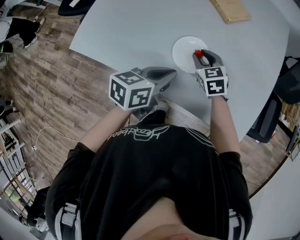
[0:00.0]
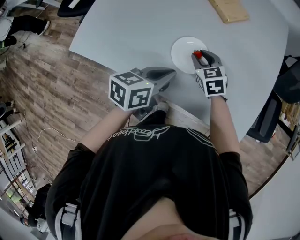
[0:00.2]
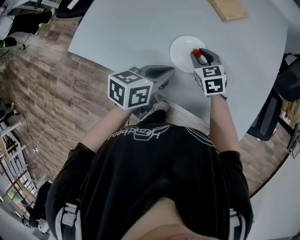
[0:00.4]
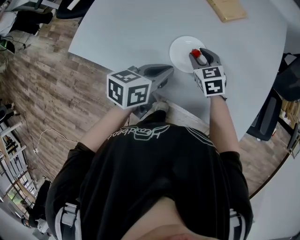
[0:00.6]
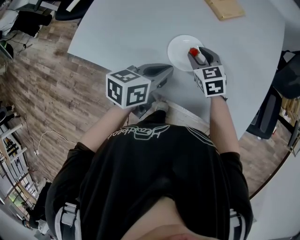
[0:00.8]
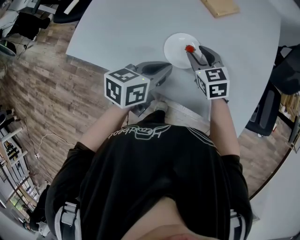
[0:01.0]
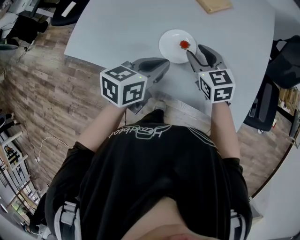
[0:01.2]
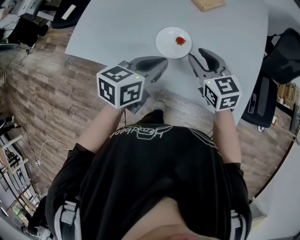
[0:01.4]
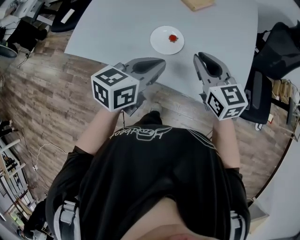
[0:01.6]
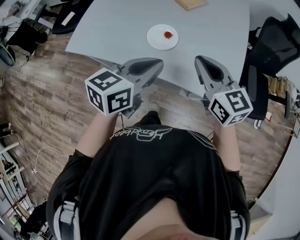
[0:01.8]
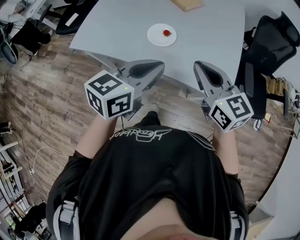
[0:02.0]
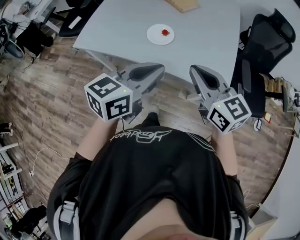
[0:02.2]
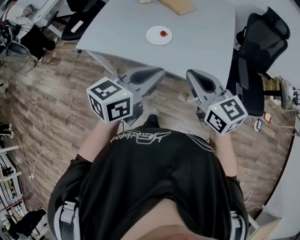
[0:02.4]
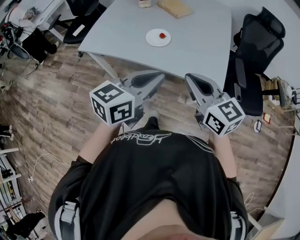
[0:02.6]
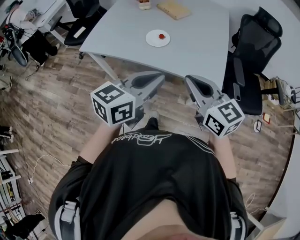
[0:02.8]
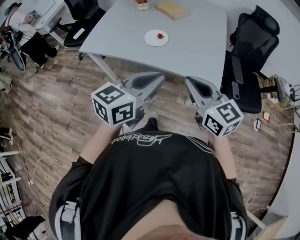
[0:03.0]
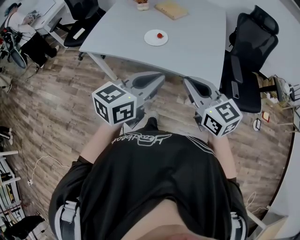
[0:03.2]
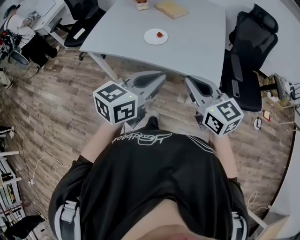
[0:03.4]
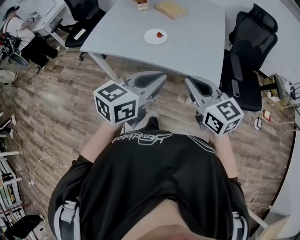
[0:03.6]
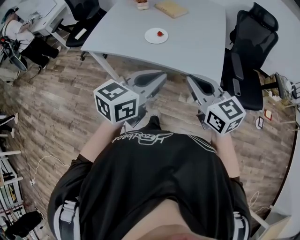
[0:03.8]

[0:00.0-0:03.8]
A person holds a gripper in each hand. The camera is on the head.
0:00.0 to 0:01.2: The right gripper heads upward, covering approximately 10 cm.
0:01.2 to 0:02.6: The two grippers go about 35 cm backward and upward. The left gripper changes its angle by some 20 degrees. Meanwhile the right gripper turns by about 20 degrees, and closes its fingers.
0:02.6 to 0:03.8: The grippers both shift backward by some 5 cm.

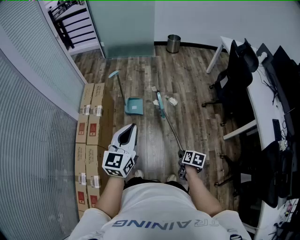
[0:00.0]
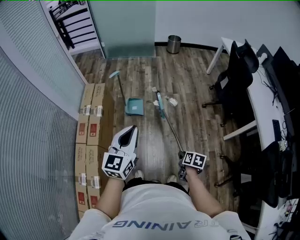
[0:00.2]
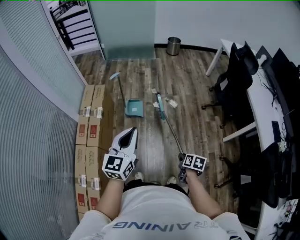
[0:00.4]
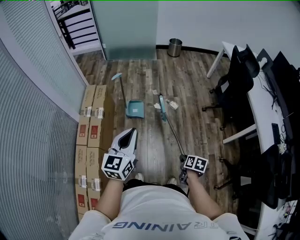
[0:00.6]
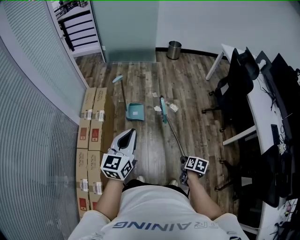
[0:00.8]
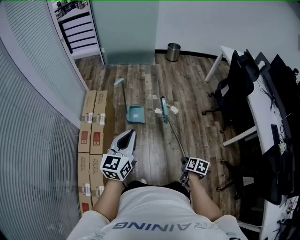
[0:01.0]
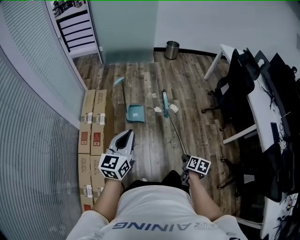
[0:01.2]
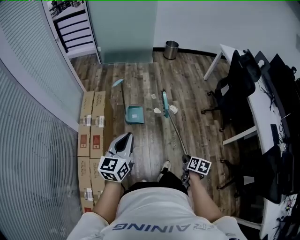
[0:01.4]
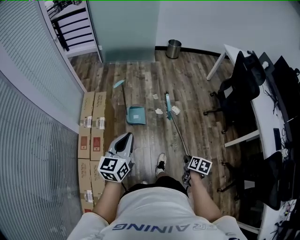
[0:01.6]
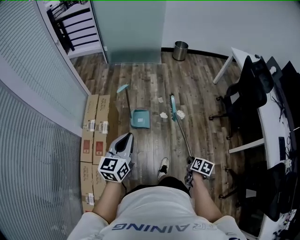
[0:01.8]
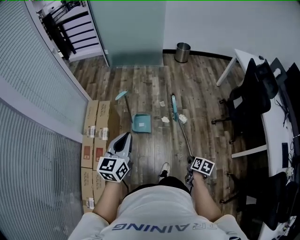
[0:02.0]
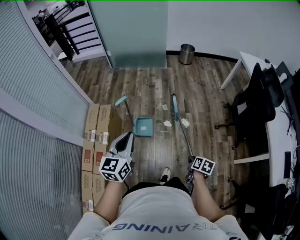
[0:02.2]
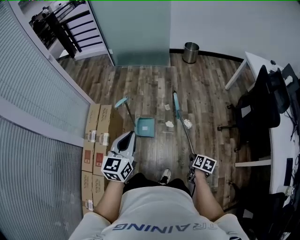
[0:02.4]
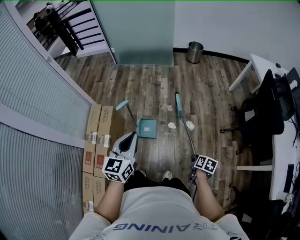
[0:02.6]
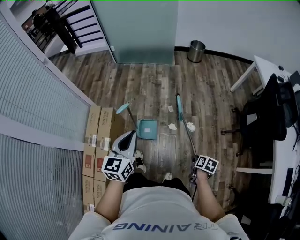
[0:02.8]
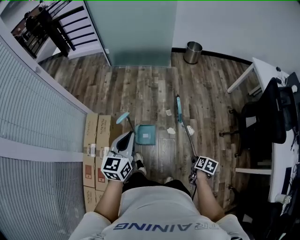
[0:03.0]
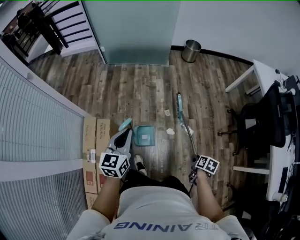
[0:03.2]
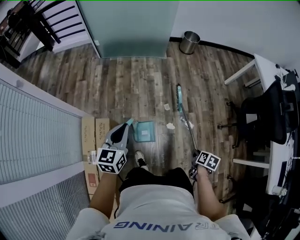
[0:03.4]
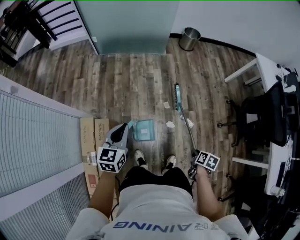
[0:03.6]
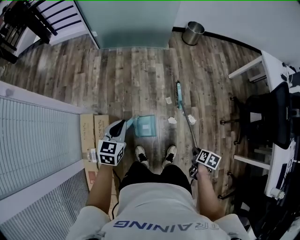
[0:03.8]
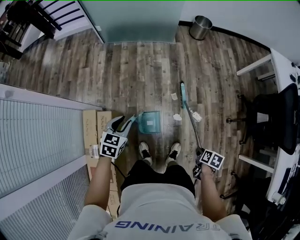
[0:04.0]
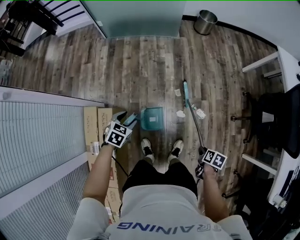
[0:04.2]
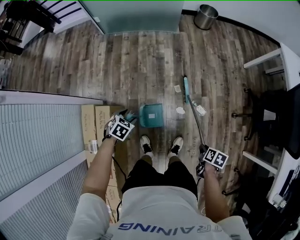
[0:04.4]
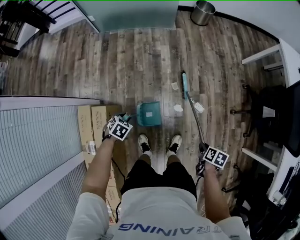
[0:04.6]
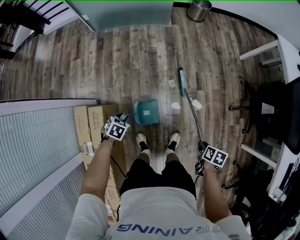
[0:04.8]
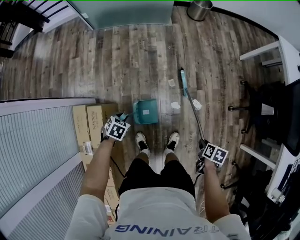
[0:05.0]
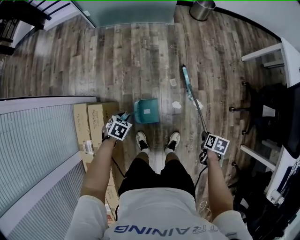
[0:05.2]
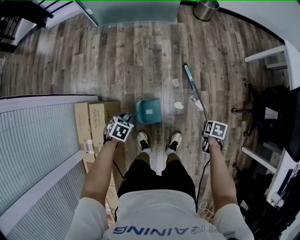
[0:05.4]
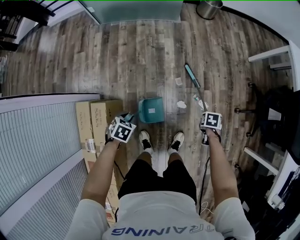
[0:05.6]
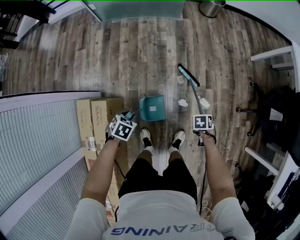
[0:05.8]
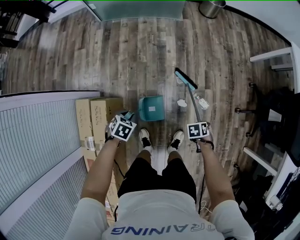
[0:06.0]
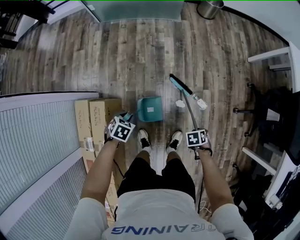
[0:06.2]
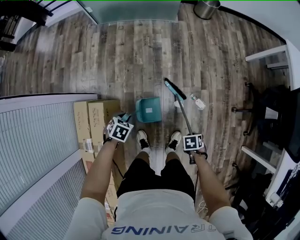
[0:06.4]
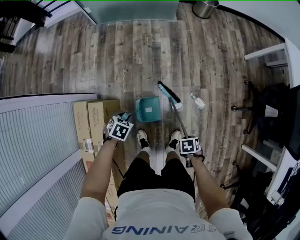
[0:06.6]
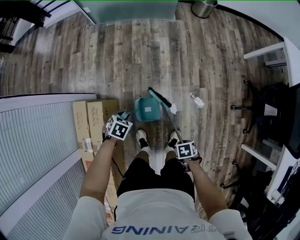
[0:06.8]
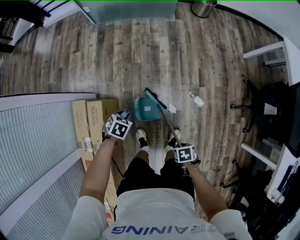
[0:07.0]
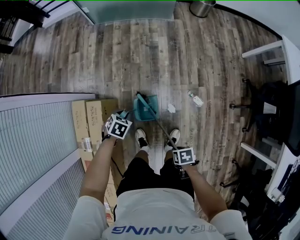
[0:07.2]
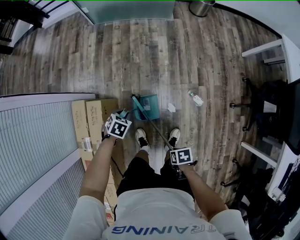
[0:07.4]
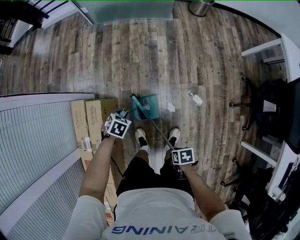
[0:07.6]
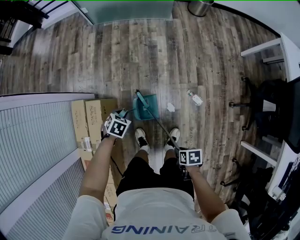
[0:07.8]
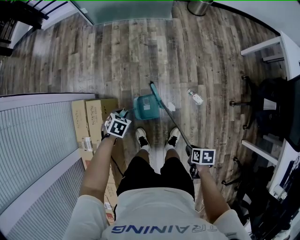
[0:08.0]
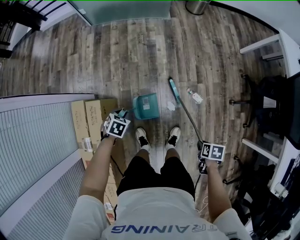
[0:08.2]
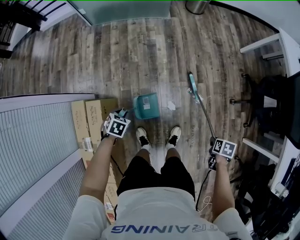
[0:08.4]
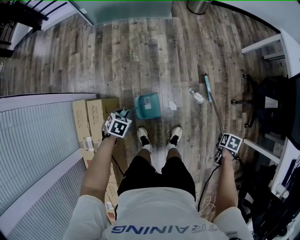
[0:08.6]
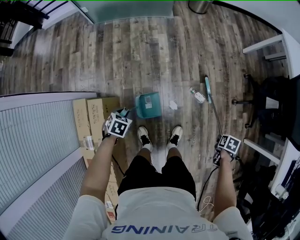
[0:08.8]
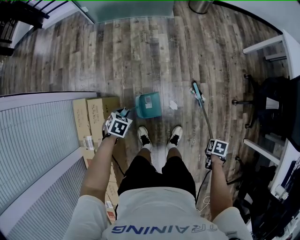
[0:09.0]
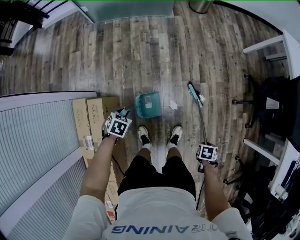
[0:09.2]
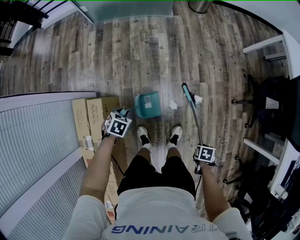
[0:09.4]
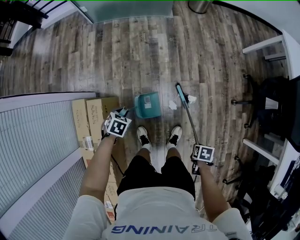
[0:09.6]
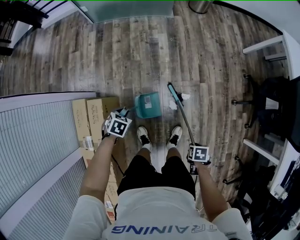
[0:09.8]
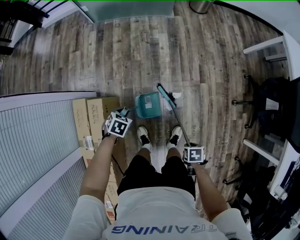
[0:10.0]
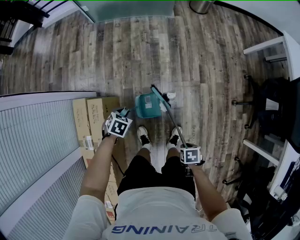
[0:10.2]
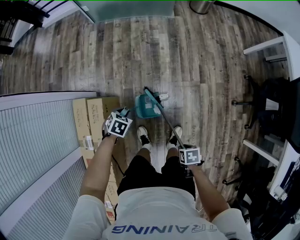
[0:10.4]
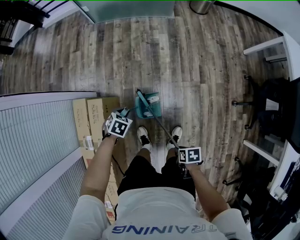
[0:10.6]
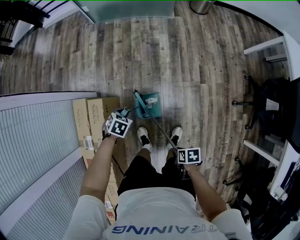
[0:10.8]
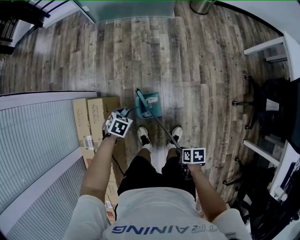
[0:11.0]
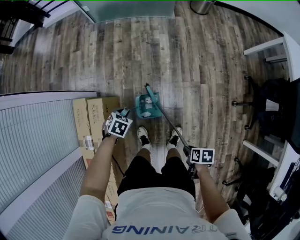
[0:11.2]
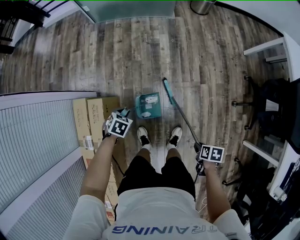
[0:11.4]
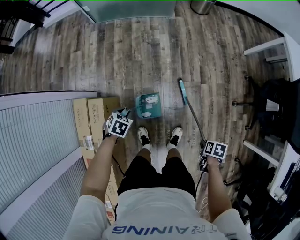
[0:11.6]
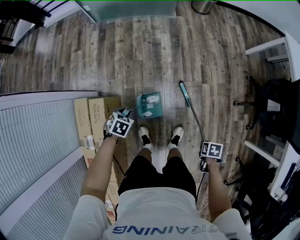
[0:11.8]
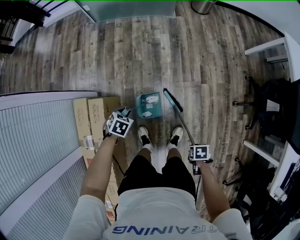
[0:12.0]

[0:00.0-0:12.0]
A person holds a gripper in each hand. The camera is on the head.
0:00.0 to 0:01.6: The left gripper moves some 15 cm.
0:01.6 to 0:03.0: The left gripper ends up roughly 35 cm from where it was.
0:03.0 to 0:04.4: The left gripper is displaced downward by roughly 30 cm, points its fingers approximately 50 degrees further downward, and opens its fingers.
0:04.4 to 0:06.0: The left gripper shifts roughly 5 cm downward, and closes up.

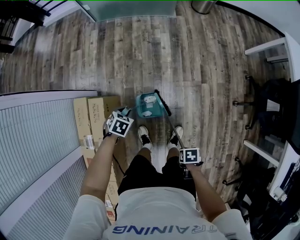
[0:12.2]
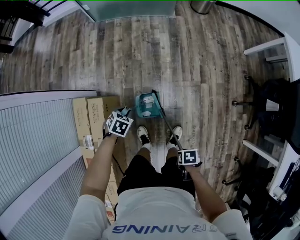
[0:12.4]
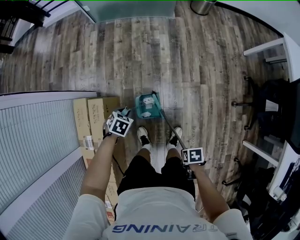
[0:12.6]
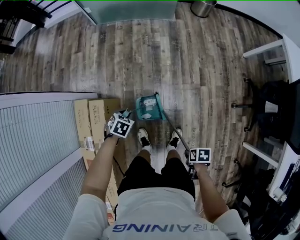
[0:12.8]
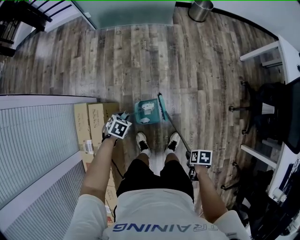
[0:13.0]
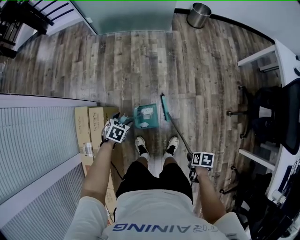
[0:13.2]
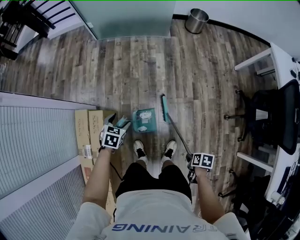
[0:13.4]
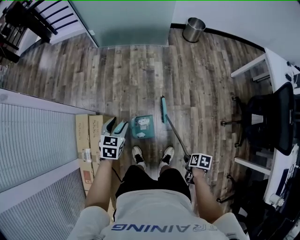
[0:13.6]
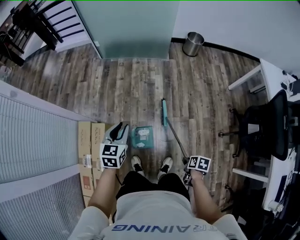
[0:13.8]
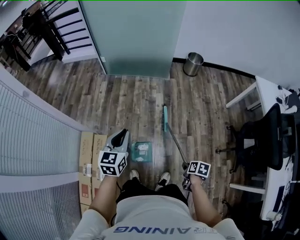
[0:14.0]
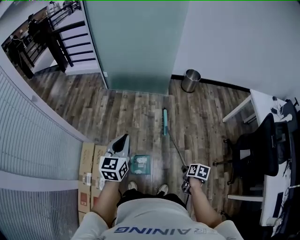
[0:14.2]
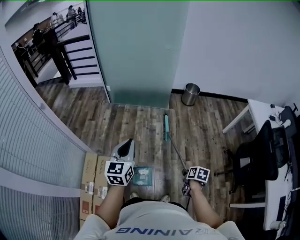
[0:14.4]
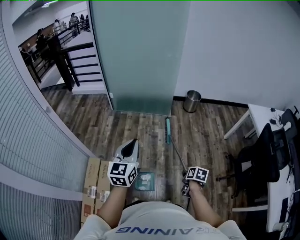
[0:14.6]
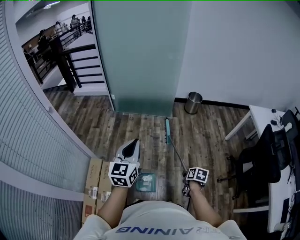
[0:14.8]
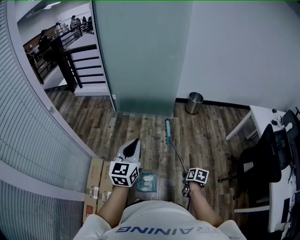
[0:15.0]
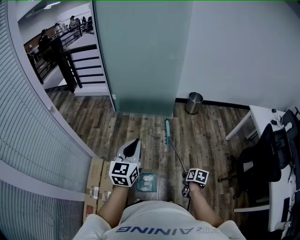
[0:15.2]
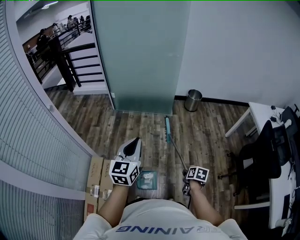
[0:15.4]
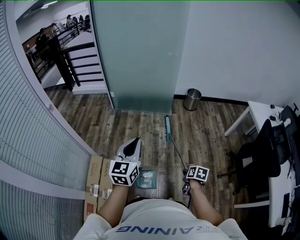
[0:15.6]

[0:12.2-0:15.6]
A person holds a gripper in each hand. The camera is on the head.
0:12.2 to 0:13.8: The left gripper is displaced upward by about 25 cm, tilts its fingers some 40 degrees upward, and opens, then closes again.
0:13.8 to 0:15.6: The left gripper travels upward by roughly 25 cm, and swivels some 30 degrees.

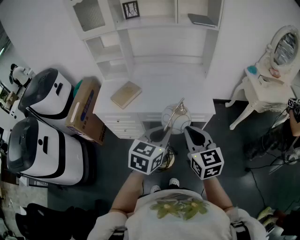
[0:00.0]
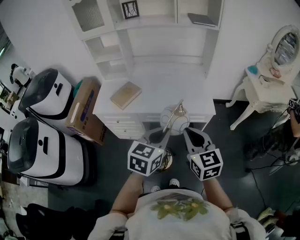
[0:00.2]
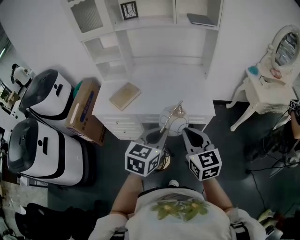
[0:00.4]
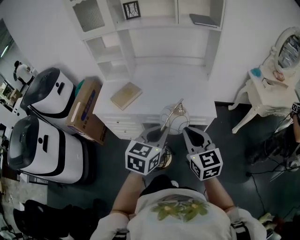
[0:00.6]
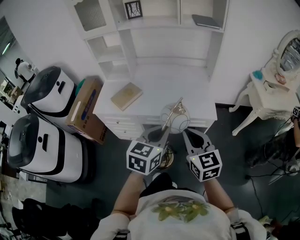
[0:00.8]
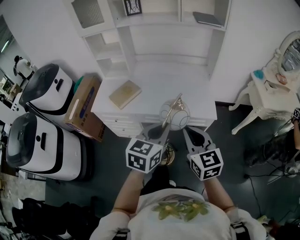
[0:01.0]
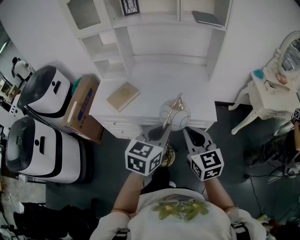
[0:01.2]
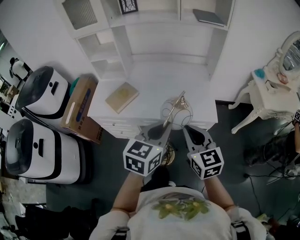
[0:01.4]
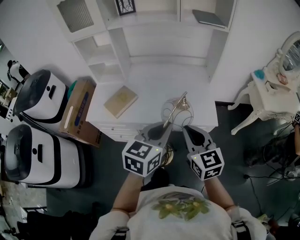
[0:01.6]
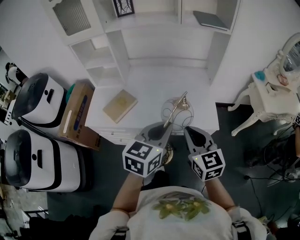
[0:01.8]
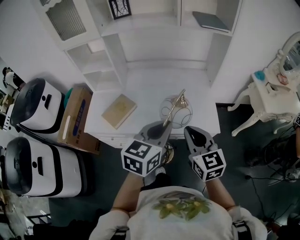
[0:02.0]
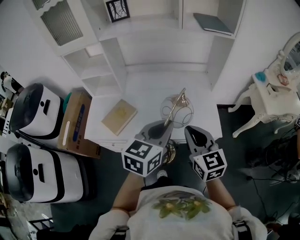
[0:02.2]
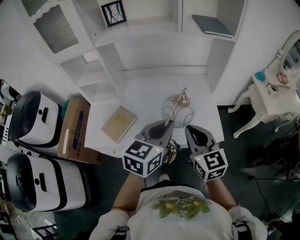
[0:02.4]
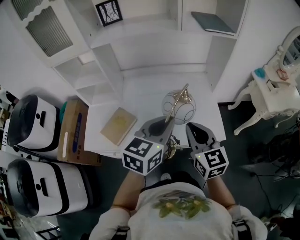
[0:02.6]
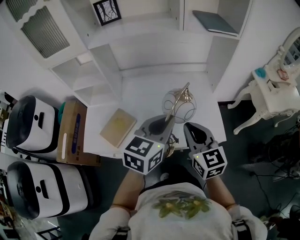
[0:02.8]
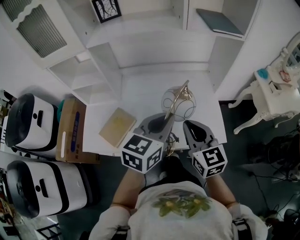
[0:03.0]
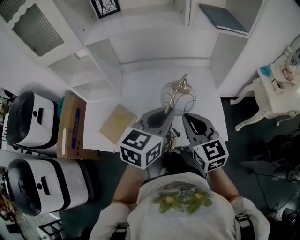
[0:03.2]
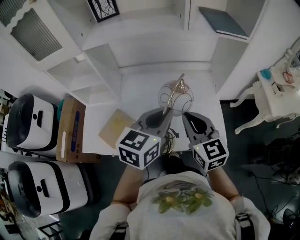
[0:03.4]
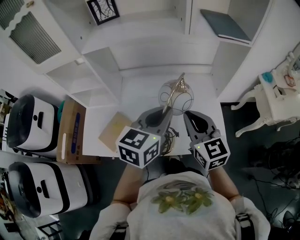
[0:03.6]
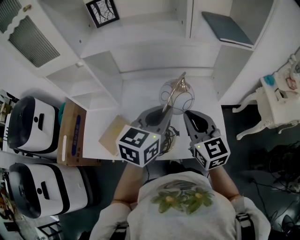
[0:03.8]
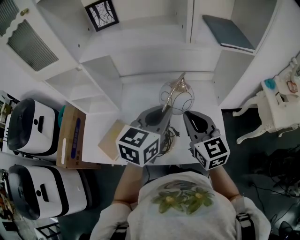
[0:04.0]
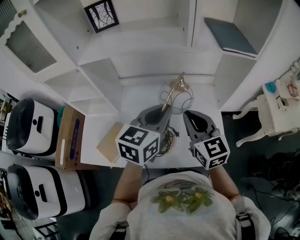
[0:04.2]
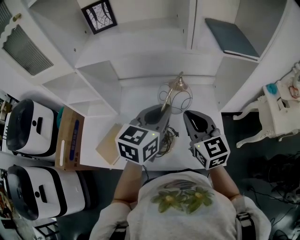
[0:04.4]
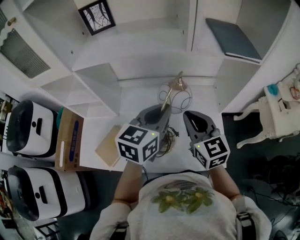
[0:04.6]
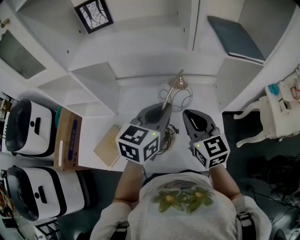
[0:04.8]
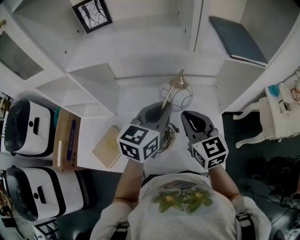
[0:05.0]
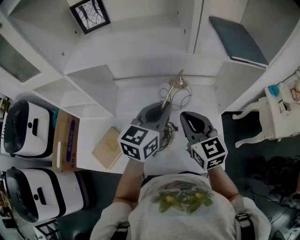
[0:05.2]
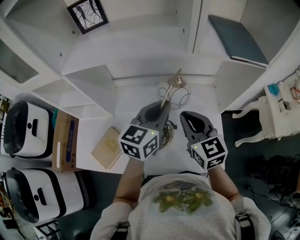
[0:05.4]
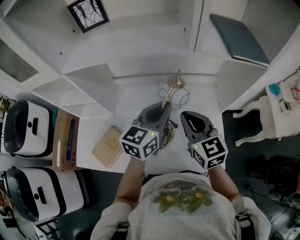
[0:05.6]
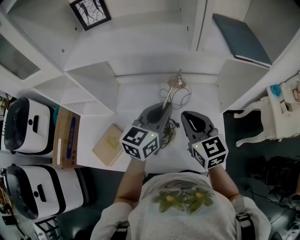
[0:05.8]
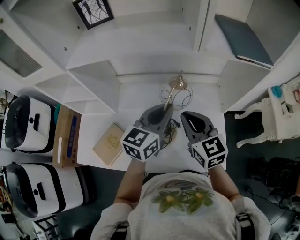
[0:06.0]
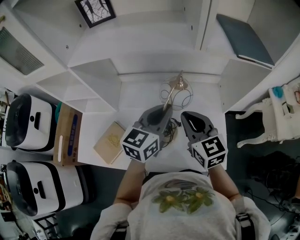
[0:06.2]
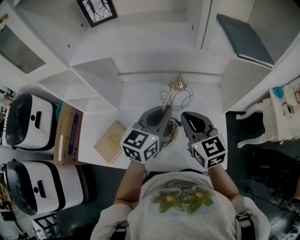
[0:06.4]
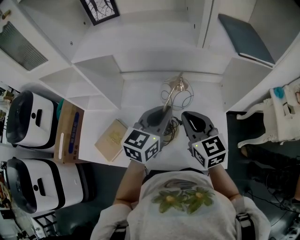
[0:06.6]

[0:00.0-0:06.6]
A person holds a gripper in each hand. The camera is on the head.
0:00.0 to 0:01.6: Both grippers travel together forward, about 15 cm.
0:01.6 to 0:03.2: Both grippers travel together forward, some 25 cm.
0:03.2 to 0:05.0: Both grippers move forward, some 20 cm.
0:05.0 to 0:06.6: The grippers make only small movements.
